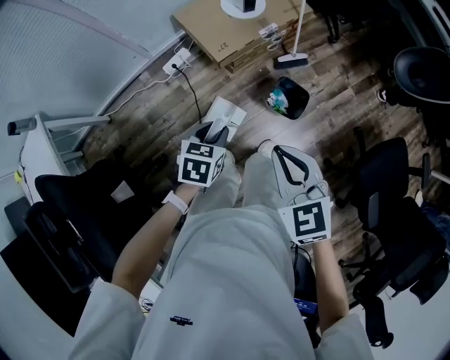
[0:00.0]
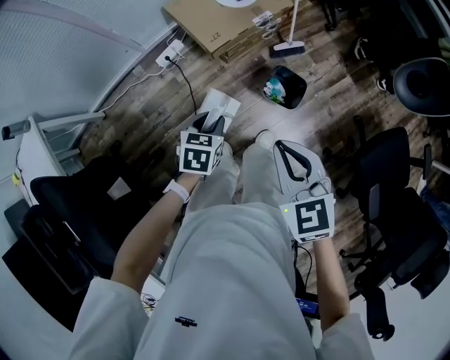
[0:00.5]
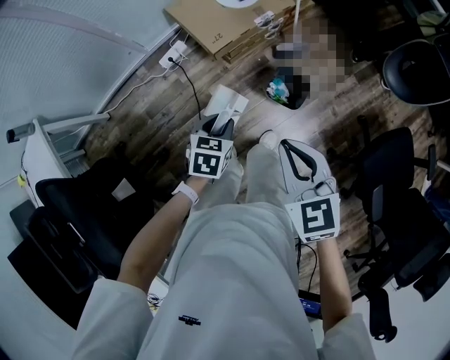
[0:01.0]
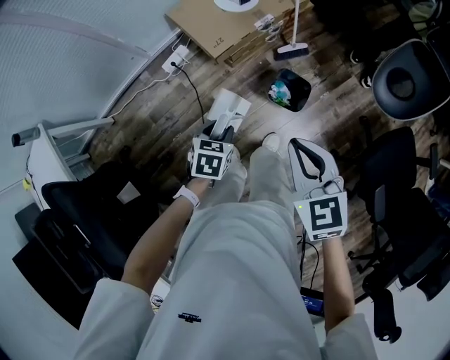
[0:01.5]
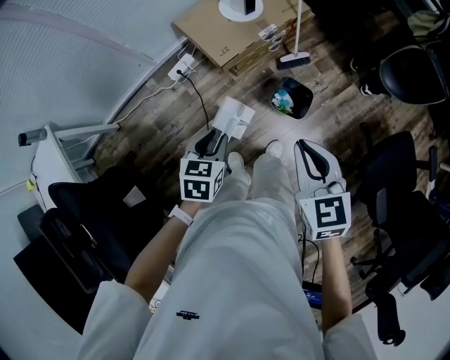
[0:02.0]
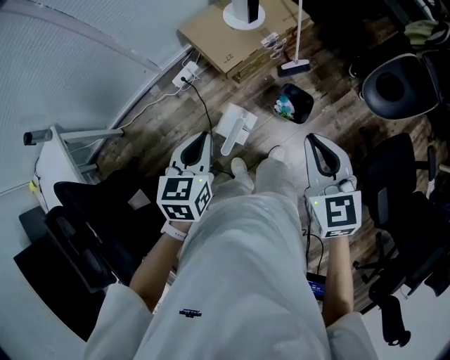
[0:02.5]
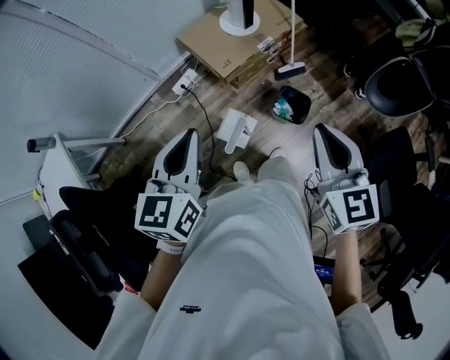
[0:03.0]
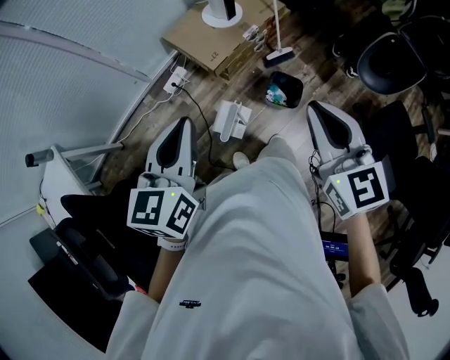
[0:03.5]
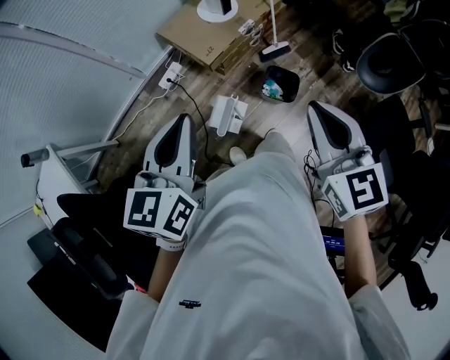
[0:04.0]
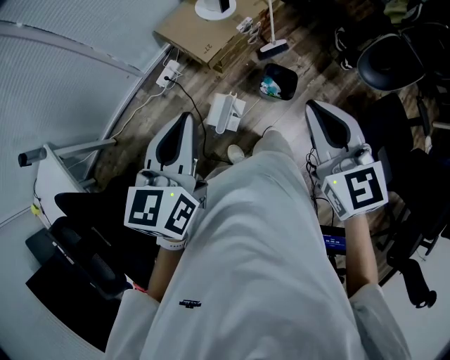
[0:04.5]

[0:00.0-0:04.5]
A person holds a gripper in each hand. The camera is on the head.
0:00.0 to 0:02.0: The right gripper heads to the right, covering approximately 5 cm.
0:02.0 to 0:04.5: The left gripper heads upward, covering about 25 cm, angles its fingers upward, by about 30 degrees, and closes its fingers; the right gripper heads upward, covering approximately 10 cm.

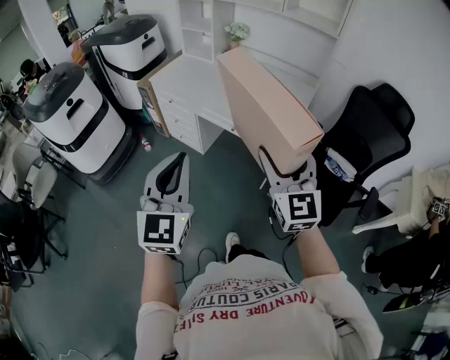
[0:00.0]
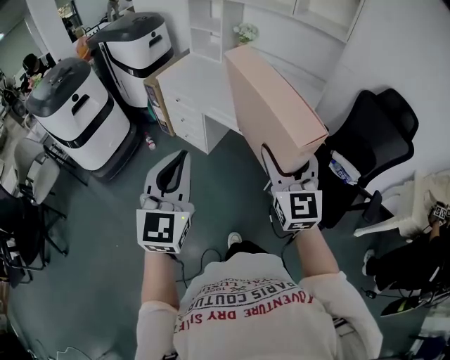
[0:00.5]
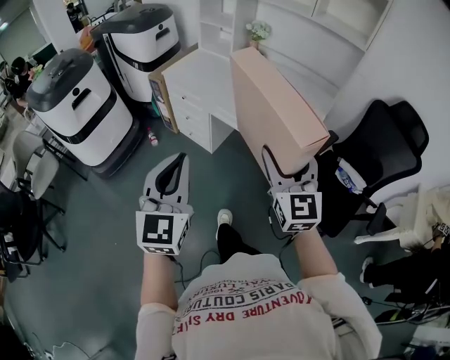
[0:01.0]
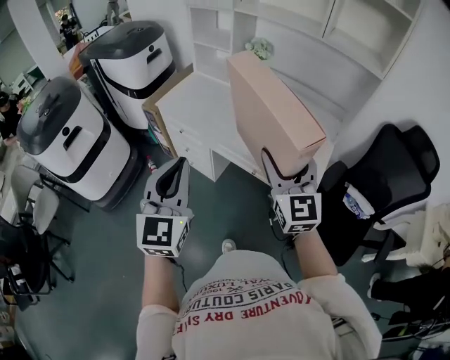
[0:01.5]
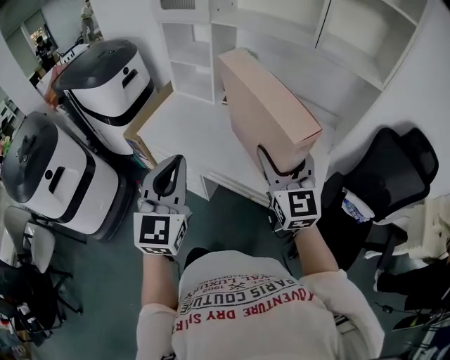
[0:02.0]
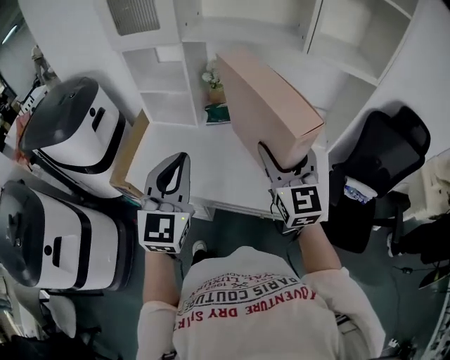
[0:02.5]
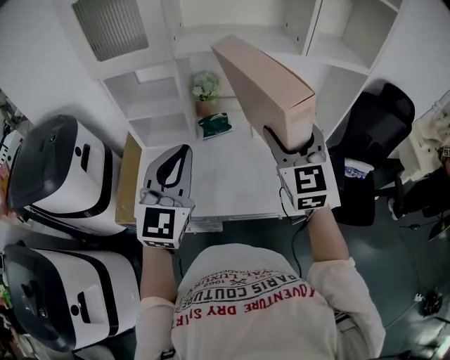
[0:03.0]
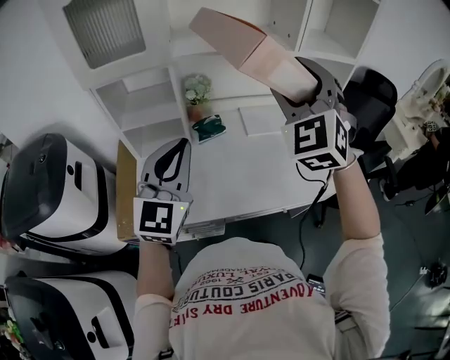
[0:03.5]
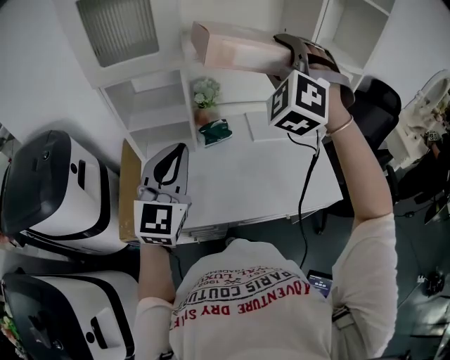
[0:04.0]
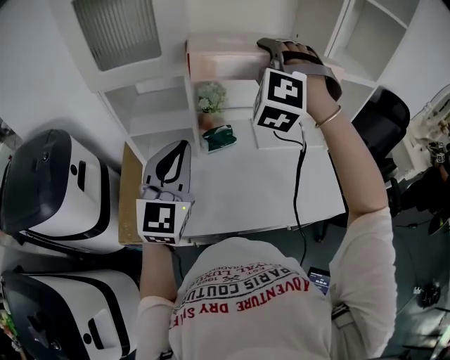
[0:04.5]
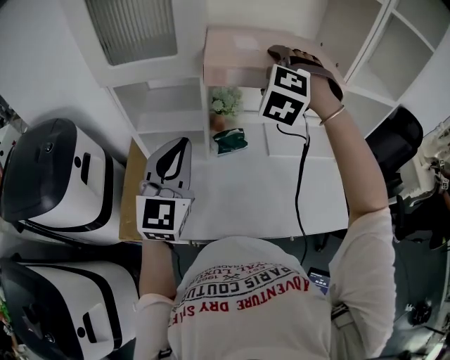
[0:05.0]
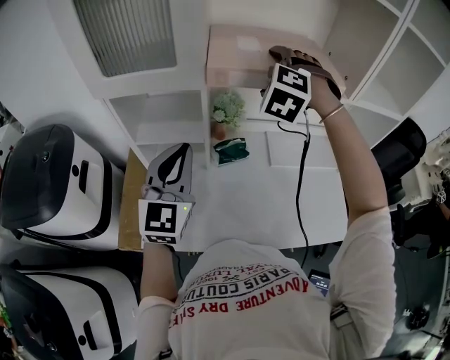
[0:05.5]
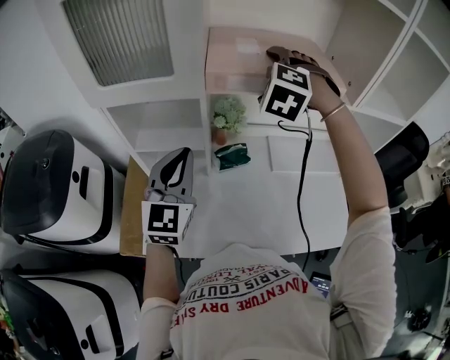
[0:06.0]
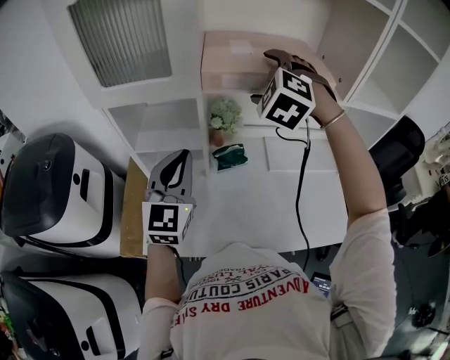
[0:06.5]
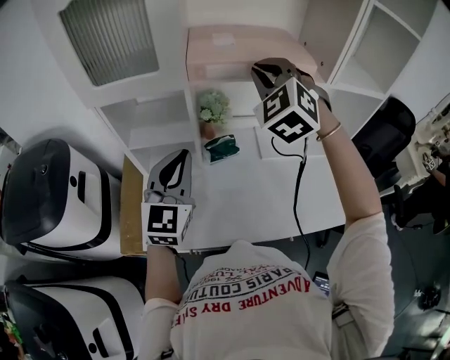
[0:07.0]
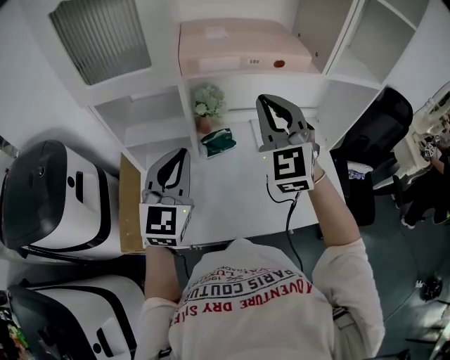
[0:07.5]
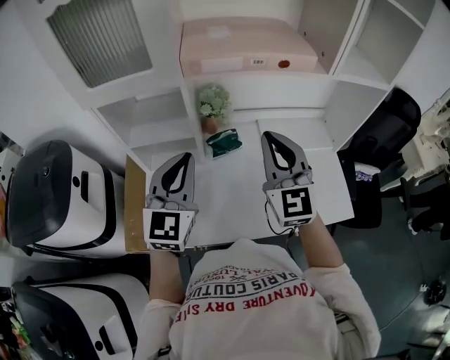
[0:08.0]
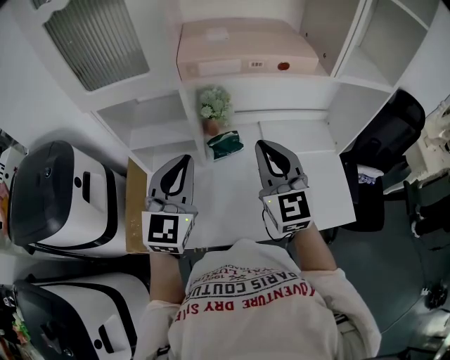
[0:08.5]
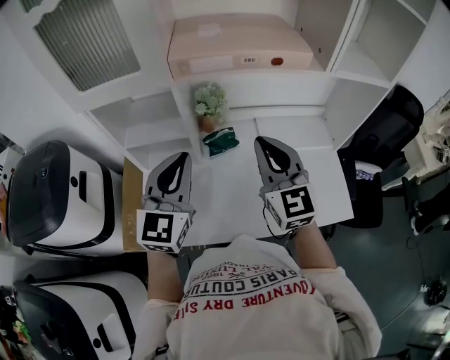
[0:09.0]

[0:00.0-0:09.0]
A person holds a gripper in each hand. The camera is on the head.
0:00.0 to 0:02.0: Both grippers move forward, about 35 cm.
0:02.0 to 0:04.5: The left gripper shifts by roughly 35 cm, and changes its angle by about 40 degrees; the right gripper changes place by roughly 40 cm, and changes its angle by roughly 80 degrees.
0:04.5 to 0:07.0: The left gripper moves forward, about 5 cm. Meanwhile the right gripper goes forward and returns, roughly 15 cm each way, rotates about 30 degrees, and closes its fingers.
0:07.0 to 0:09.0: The right gripper goes some 15 cm downward and backward, and rolls clockwise, seen from behind, by approximately 40 degrees.

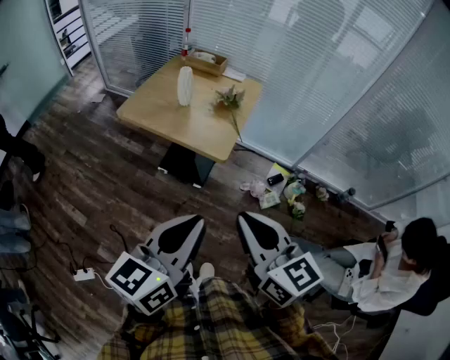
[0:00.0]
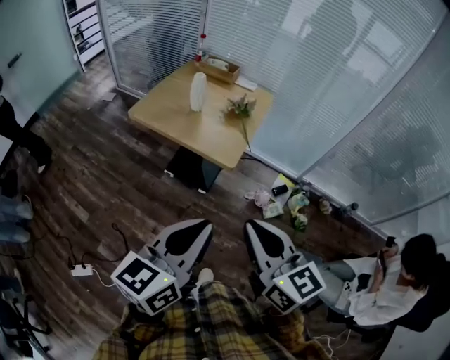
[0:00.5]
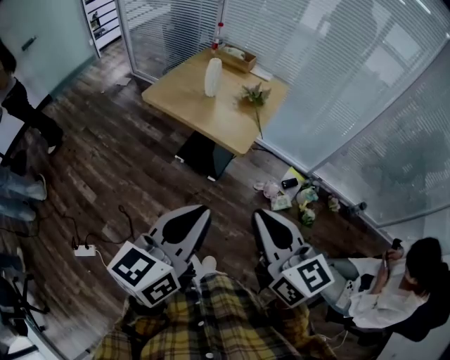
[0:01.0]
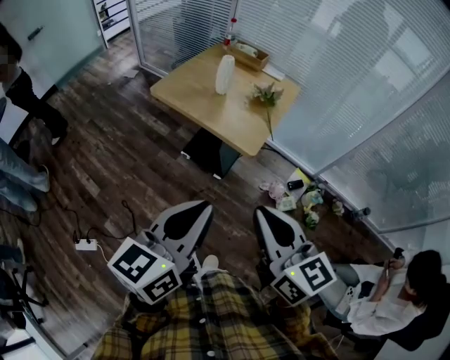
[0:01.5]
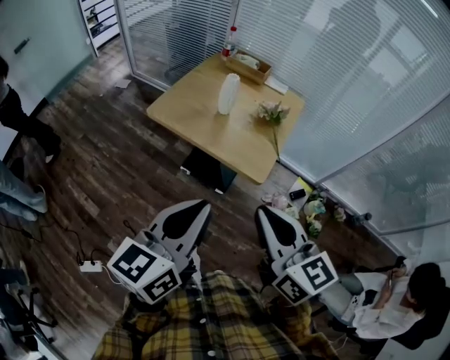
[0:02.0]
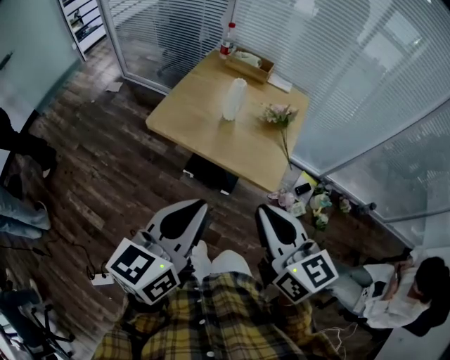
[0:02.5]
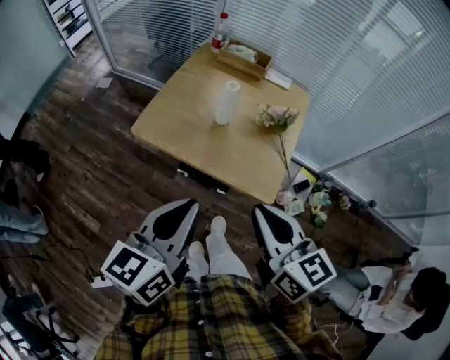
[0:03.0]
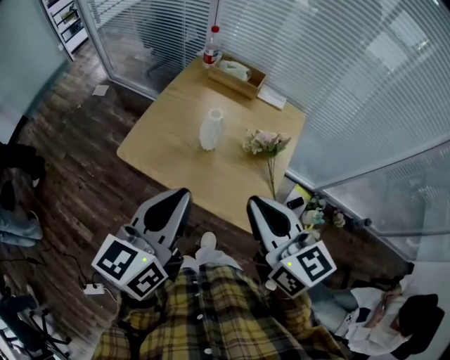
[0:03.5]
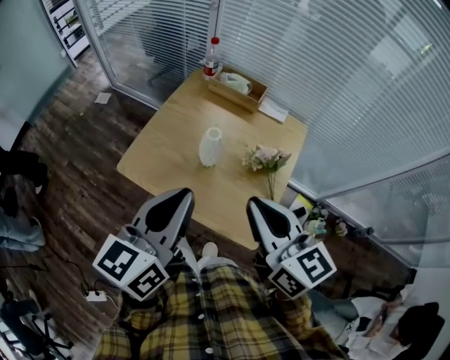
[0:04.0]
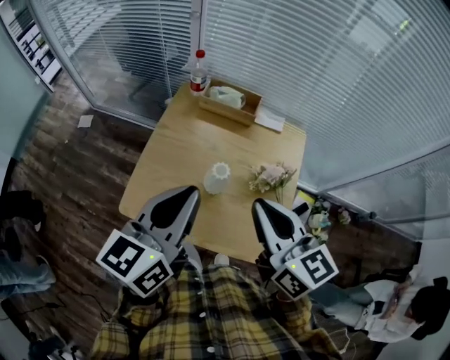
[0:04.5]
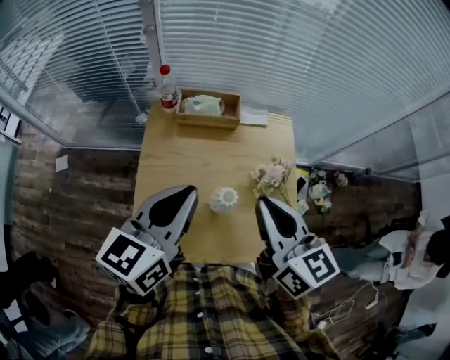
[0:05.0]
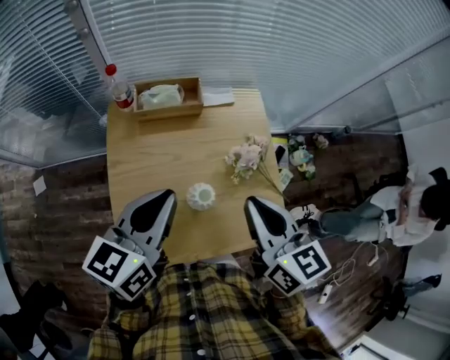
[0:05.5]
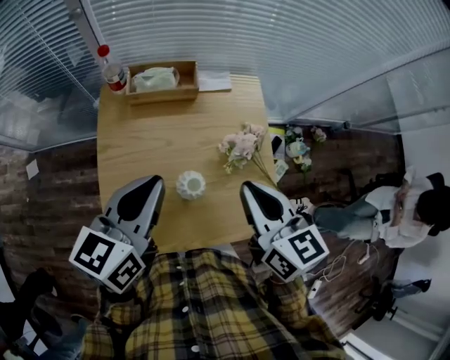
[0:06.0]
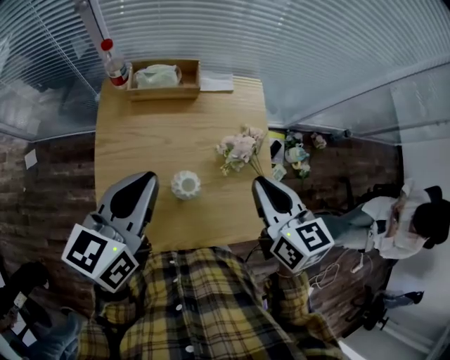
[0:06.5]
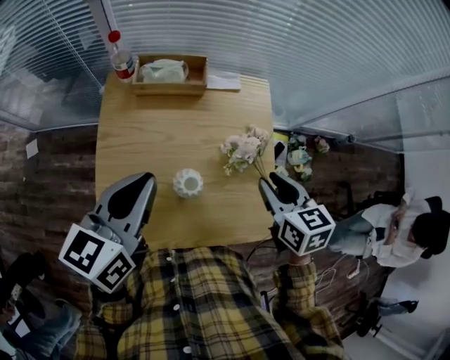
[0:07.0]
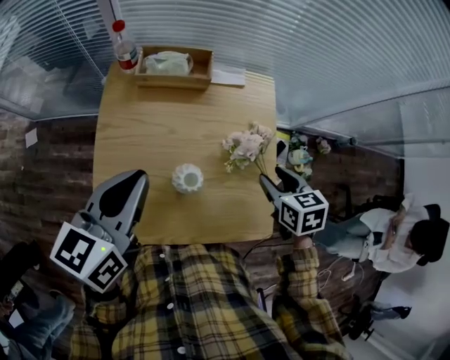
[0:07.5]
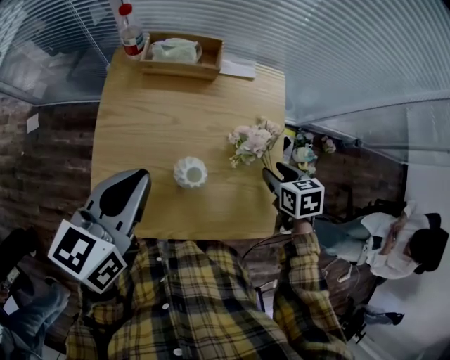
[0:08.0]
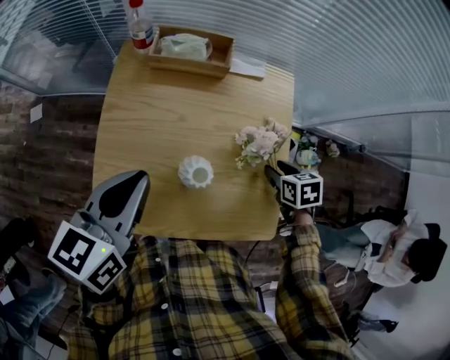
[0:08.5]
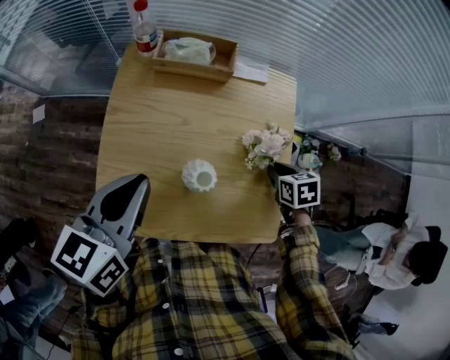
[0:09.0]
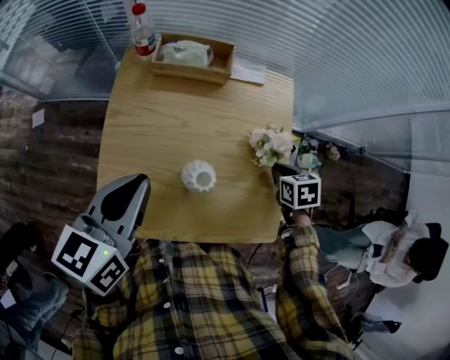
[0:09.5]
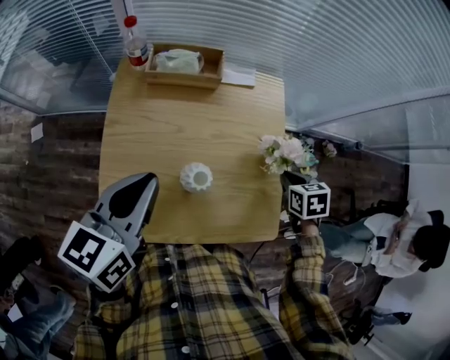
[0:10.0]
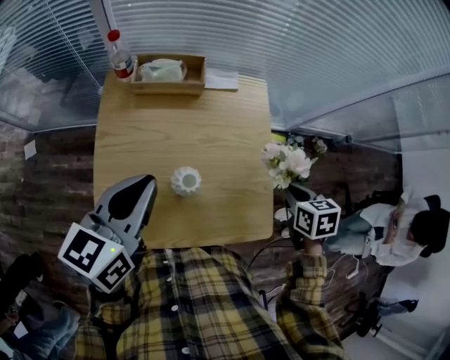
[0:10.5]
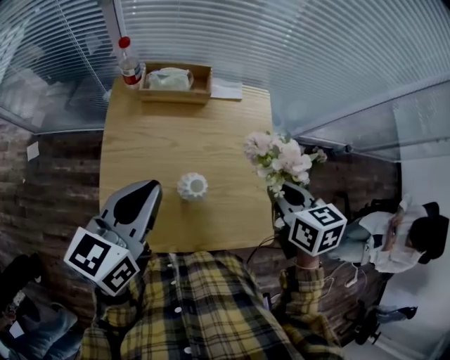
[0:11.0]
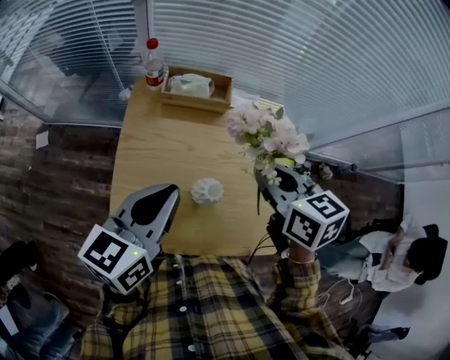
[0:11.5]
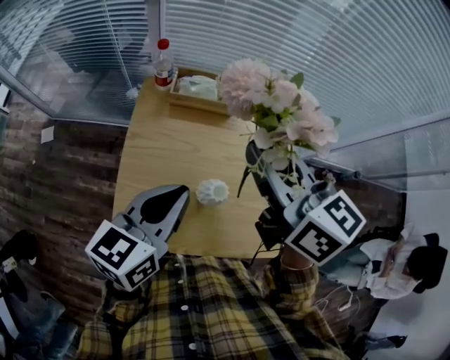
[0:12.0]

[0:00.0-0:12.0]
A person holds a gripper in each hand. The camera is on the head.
0:00.0 to 0:02.0: Both grippers travel together forward and to the left, roughly 15 cm.
0:02.0 to 0:04.0: Both grippers travel together forward, about 30 cm.
0:04.0 to 0:06.0: The left gripper shifts by approximately 25 cm, and swivels approximately 40 degrees. Meanwhile the right gripper changes place by some 15 cm, and turns by roughly 40 degrees.
0:06.0 to 0:08.0: The right gripper is displaced downward and to the right by about 25 cm, tips its fingers downward by roughly 40 degrees, and opens its fingers.
0:08.0 to 0:10.0: The right gripper closes its fingers.
0:10.0 to 0:12.0: The right gripper is displaced upward and to the left by about 40 cm, and angles its fingers upward, by some 50 degrees.

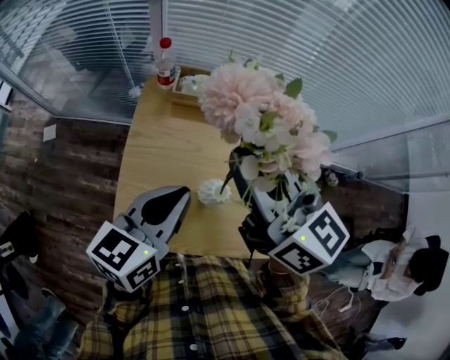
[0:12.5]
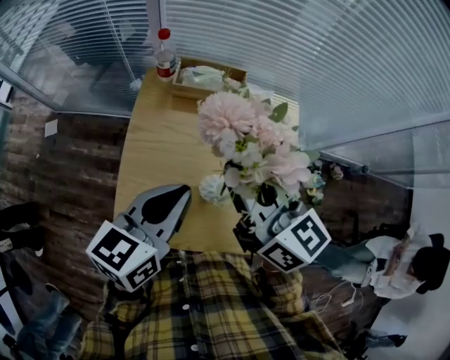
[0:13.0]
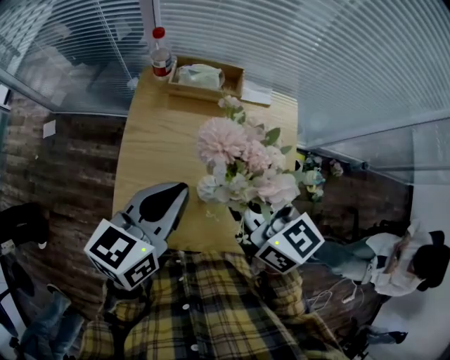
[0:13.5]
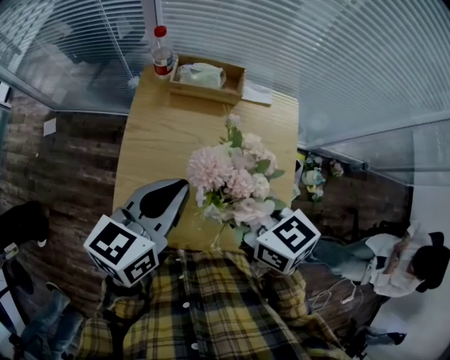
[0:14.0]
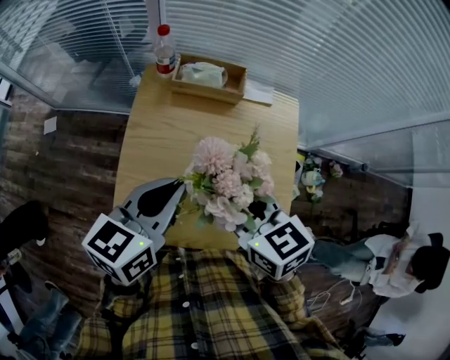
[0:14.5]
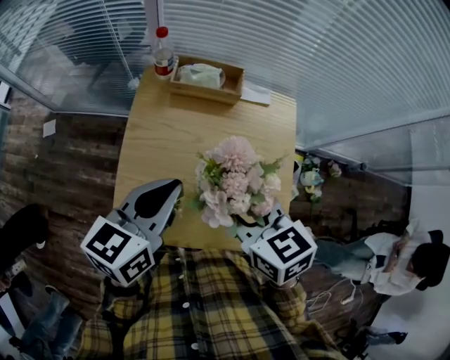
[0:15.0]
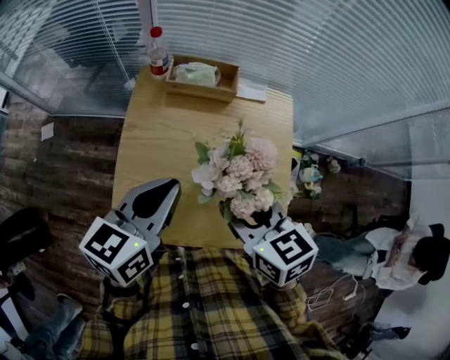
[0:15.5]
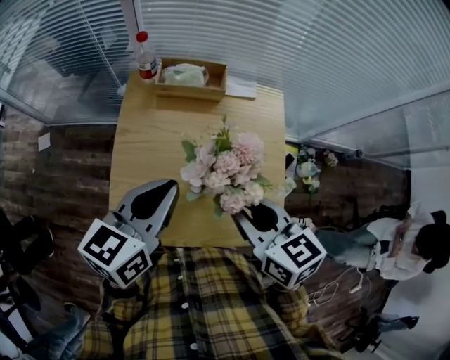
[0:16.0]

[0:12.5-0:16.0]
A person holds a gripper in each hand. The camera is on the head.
0:12.5 to 0:14.5: The right gripper goes some 15 cm downward and backward, rotates some 30 degrees, and opens up.
0:14.5 to 0:16.0: The right gripper shifts about 5 cm to the right.
